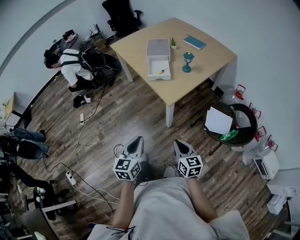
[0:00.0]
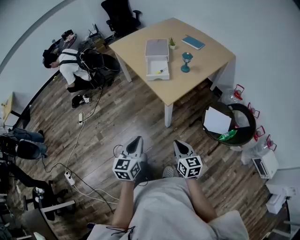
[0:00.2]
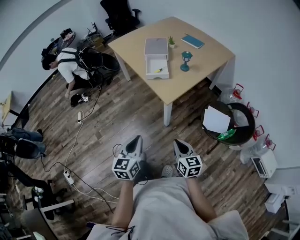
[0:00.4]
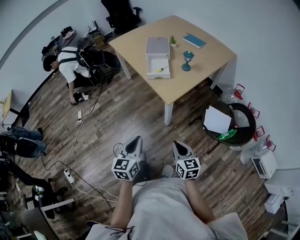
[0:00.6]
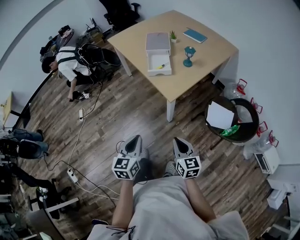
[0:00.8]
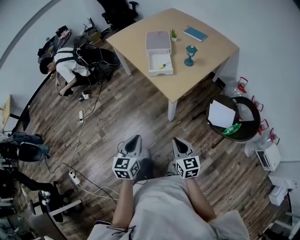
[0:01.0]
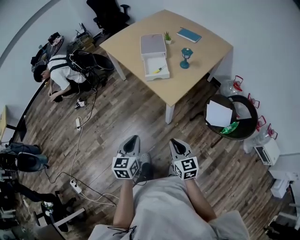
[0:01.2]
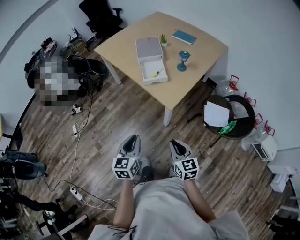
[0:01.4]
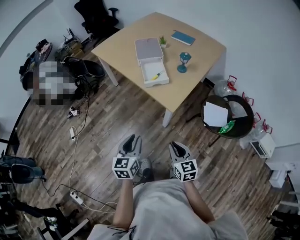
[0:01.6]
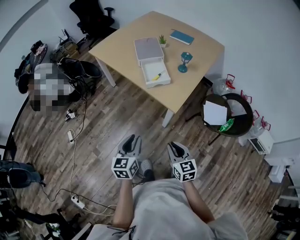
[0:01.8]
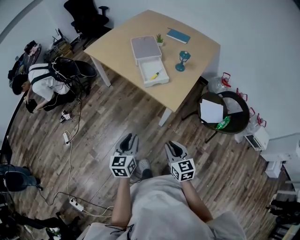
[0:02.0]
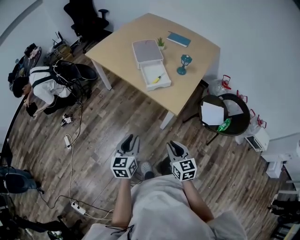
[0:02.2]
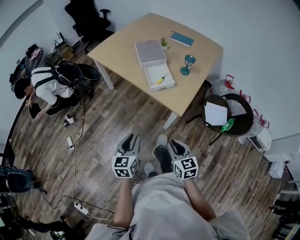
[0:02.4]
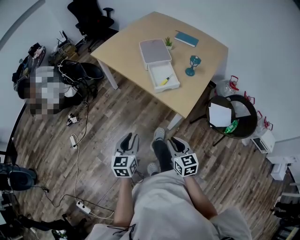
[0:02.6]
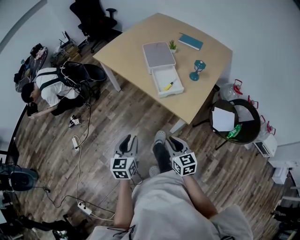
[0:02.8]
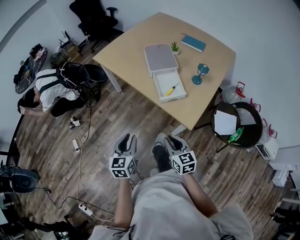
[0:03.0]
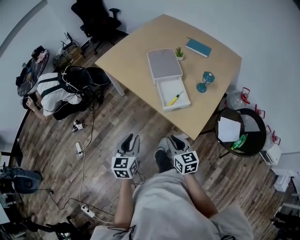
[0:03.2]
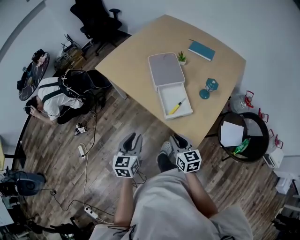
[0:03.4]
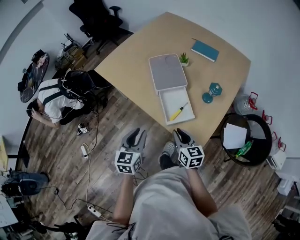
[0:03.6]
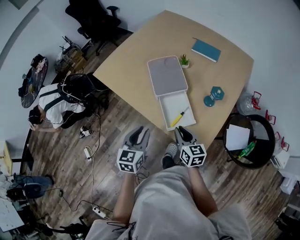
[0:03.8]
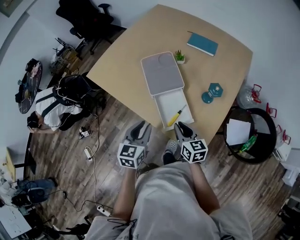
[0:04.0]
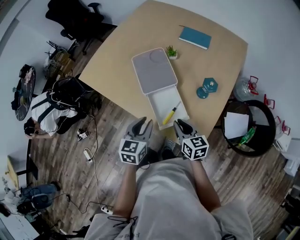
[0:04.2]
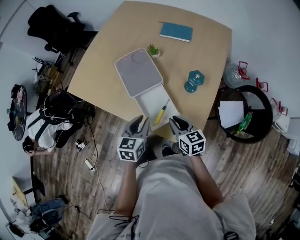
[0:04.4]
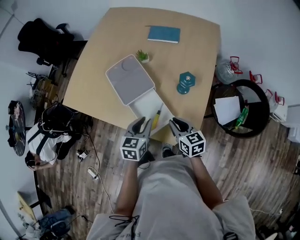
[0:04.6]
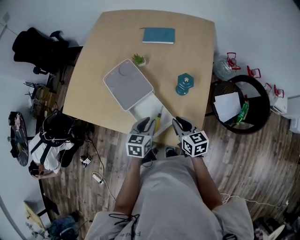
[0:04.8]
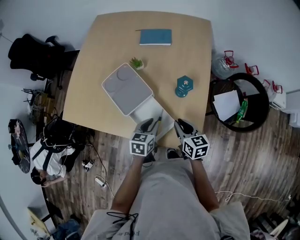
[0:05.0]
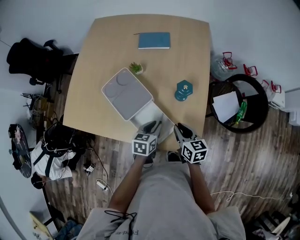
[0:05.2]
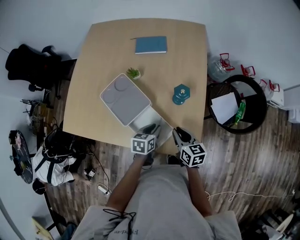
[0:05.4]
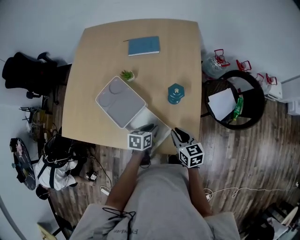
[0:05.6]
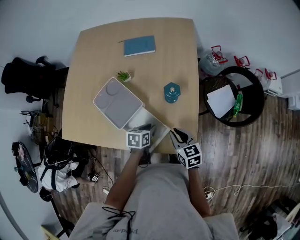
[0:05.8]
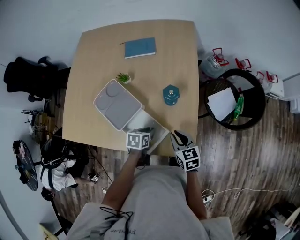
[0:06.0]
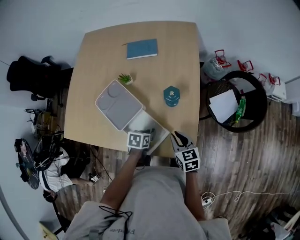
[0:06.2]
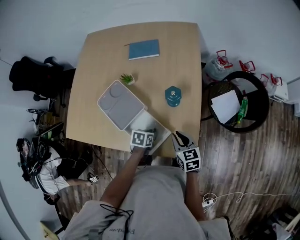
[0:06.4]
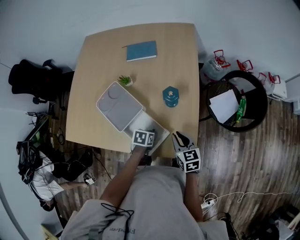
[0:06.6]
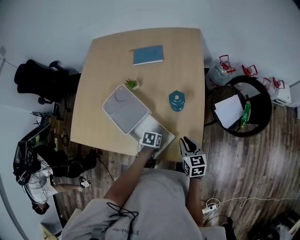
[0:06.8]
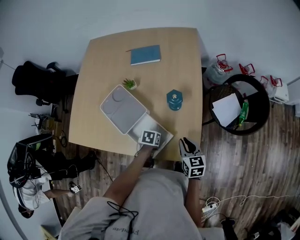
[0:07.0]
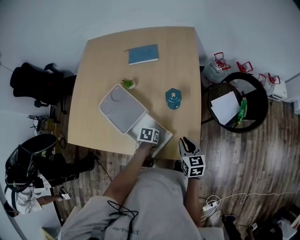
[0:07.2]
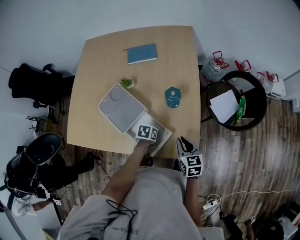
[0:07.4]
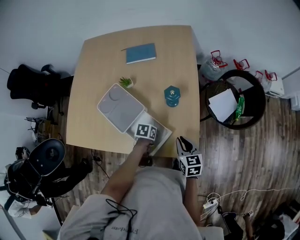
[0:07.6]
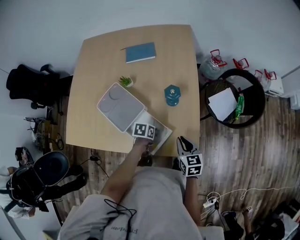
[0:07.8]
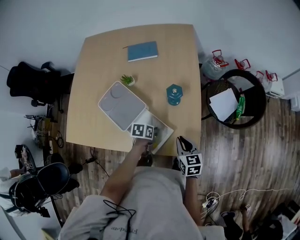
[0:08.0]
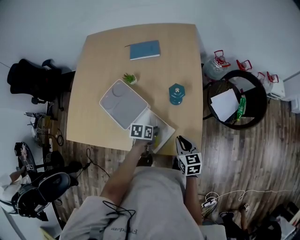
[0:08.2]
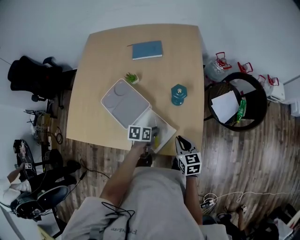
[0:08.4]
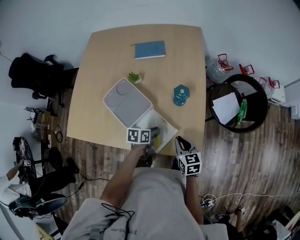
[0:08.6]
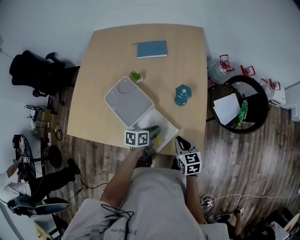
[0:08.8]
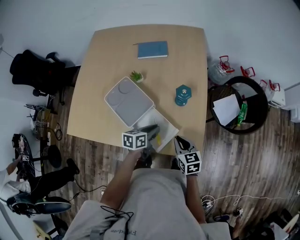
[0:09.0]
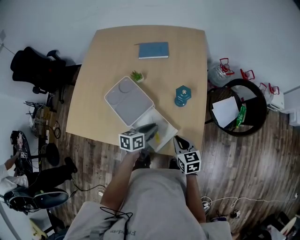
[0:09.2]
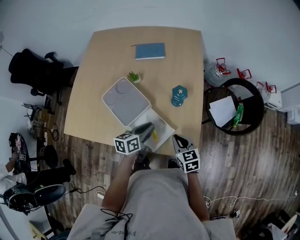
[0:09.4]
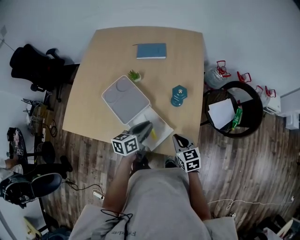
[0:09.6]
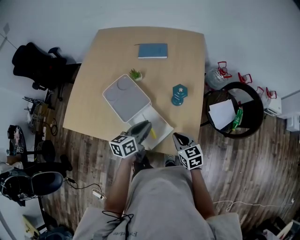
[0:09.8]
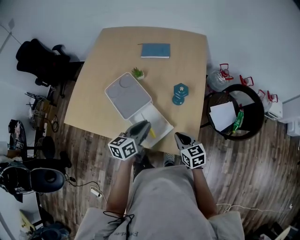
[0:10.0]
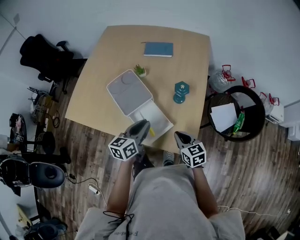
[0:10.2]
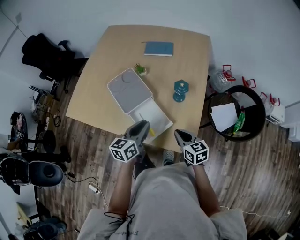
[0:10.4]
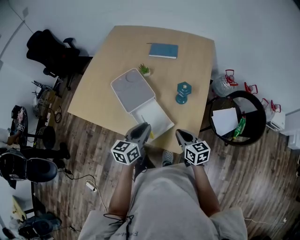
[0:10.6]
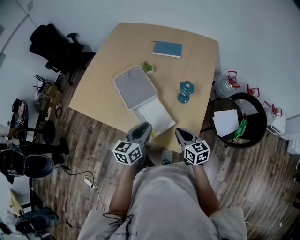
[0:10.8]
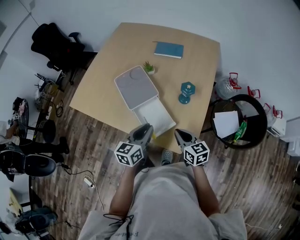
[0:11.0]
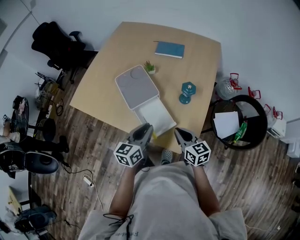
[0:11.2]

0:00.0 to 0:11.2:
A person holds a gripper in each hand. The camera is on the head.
0:00.0 to 0:01.6: The left gripper travels forward and to the left by approximately 15 cm, and opens its fingers, while the right gripper heads to the left and forward, covering some 15 cm.
0:01.6 to 0:03.2: Both grippers move forward and to the left, roughly 25 cm.
0:03.2 to 0:04.8: The right gripper shifts by roughly 30 cm, and rotates approximately 20 degrees. Meanwhile the left gripper ends up about 35 cm from where it was, and rotates about 40 degrees.
0:04.8 to 0:06.4: The left gripper goes some 10 cm downward, and turns by about 30 degrees.
0:06.4 to 0:08.0: The grippers make only small movements.
0:08.0 to 0:09.6: The left gripper moves upward, about 15 cm, and tilts its fingers approximately 30 degrees upward.
0:09.6 to 0:11.2: The right gripper turns by approximately 20 degrees. Meanwhile the left gripper heads backward, covering approximately 10 cm, and changes its angle by some 20 degrees.

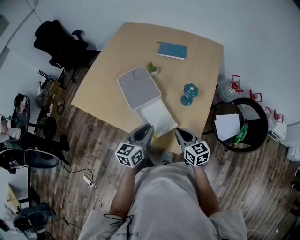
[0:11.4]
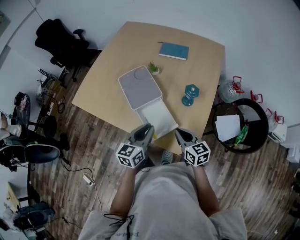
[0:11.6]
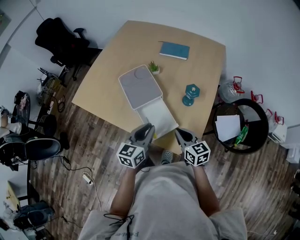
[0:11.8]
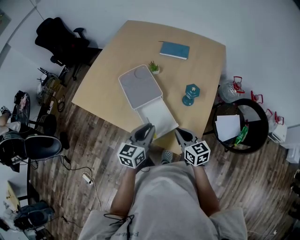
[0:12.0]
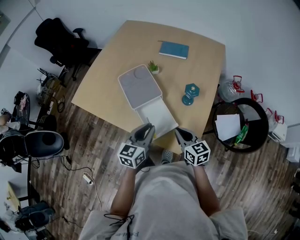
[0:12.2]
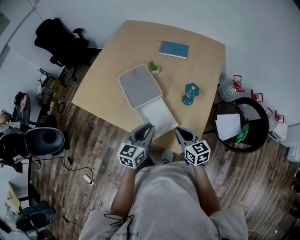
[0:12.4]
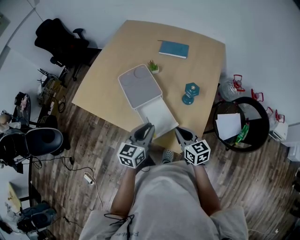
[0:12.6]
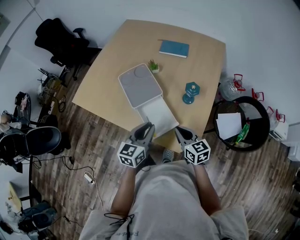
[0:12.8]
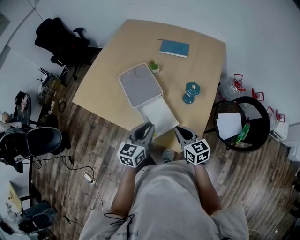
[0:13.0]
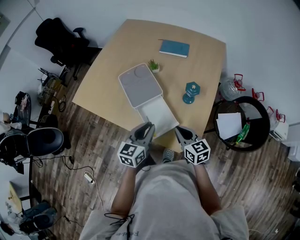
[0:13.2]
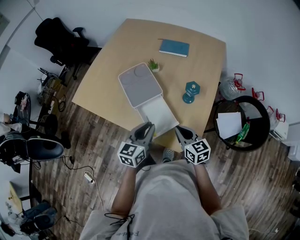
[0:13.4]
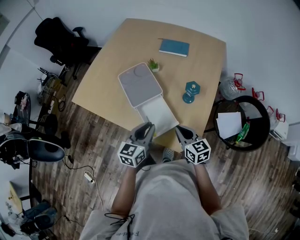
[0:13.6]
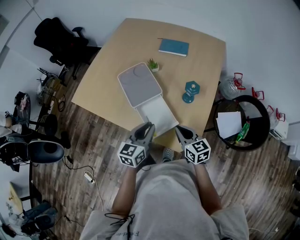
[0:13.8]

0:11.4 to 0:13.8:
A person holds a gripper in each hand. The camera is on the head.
0:11.4 to 0:12.6: The grippers stay close to where they were, moving slightly.
0:12.6 to 0:13.8: Neither gripper changes place.

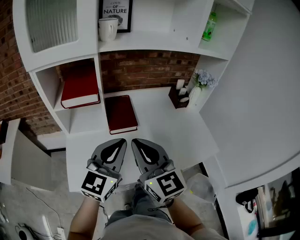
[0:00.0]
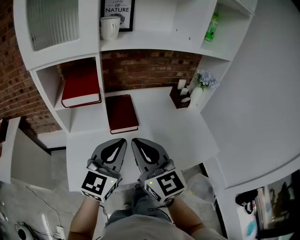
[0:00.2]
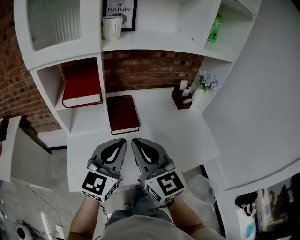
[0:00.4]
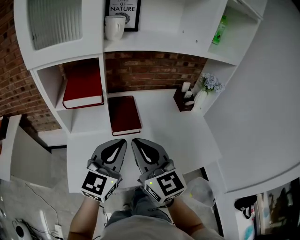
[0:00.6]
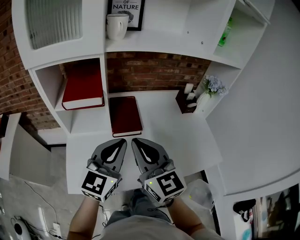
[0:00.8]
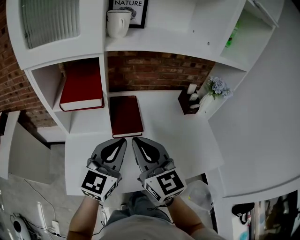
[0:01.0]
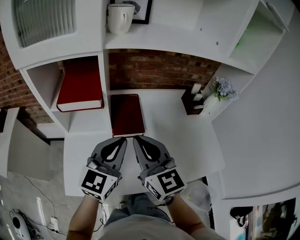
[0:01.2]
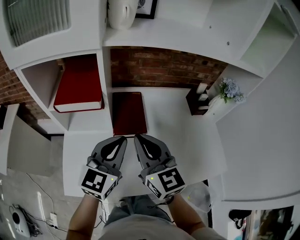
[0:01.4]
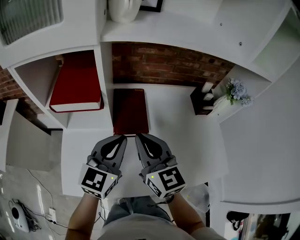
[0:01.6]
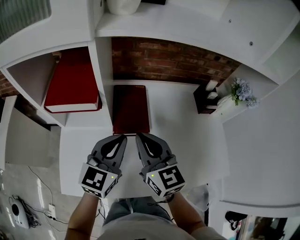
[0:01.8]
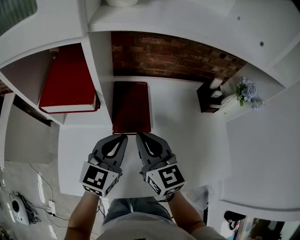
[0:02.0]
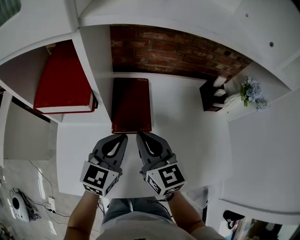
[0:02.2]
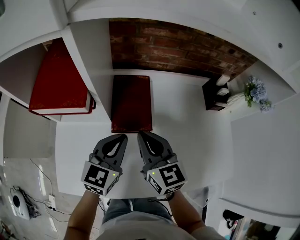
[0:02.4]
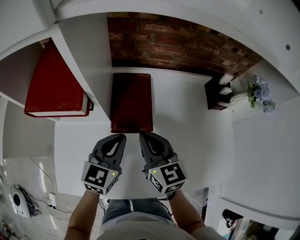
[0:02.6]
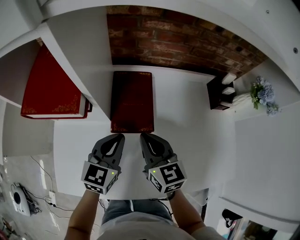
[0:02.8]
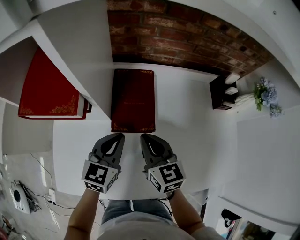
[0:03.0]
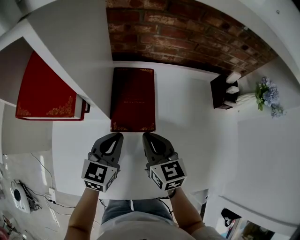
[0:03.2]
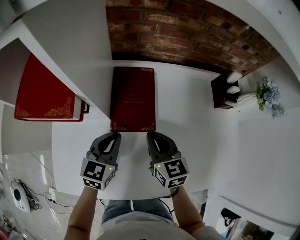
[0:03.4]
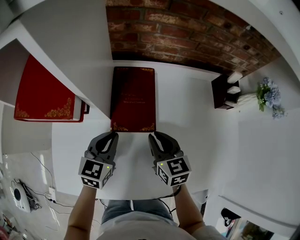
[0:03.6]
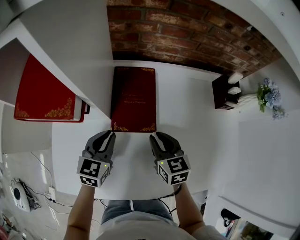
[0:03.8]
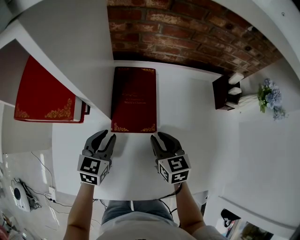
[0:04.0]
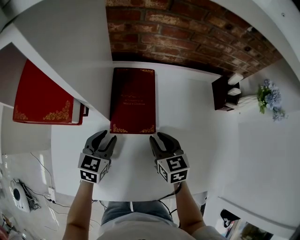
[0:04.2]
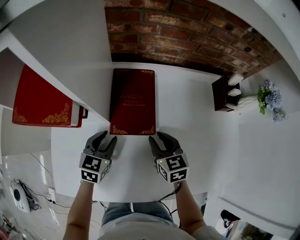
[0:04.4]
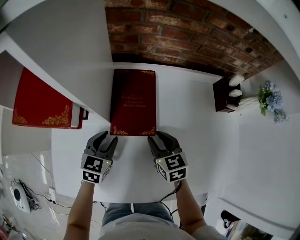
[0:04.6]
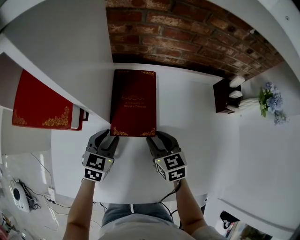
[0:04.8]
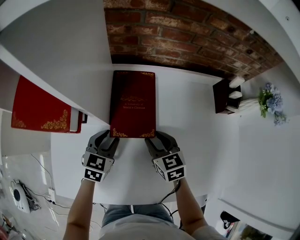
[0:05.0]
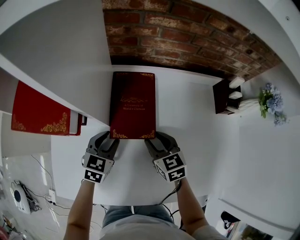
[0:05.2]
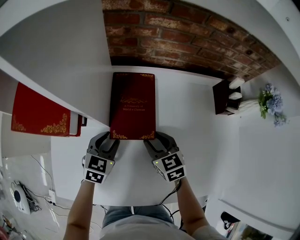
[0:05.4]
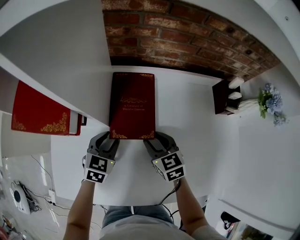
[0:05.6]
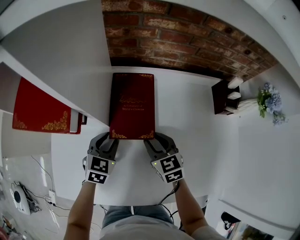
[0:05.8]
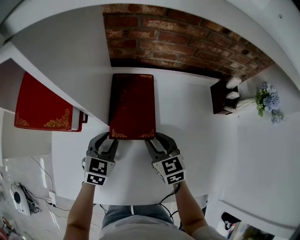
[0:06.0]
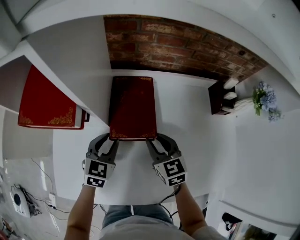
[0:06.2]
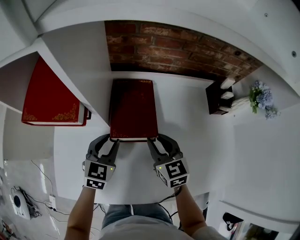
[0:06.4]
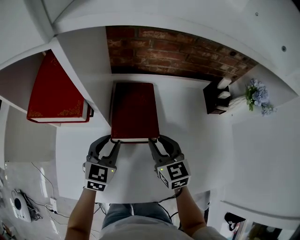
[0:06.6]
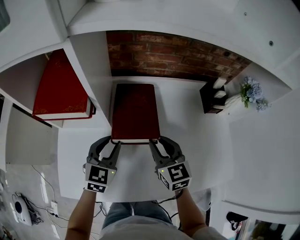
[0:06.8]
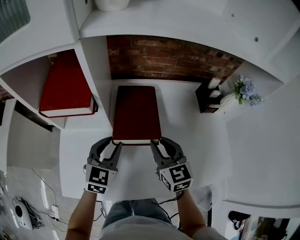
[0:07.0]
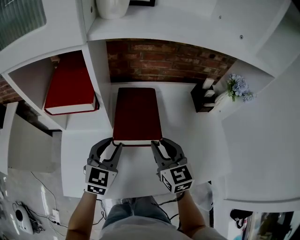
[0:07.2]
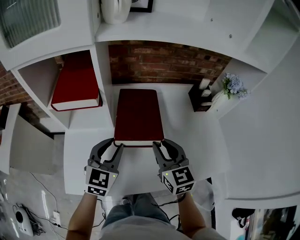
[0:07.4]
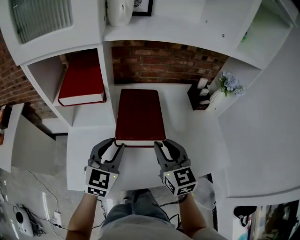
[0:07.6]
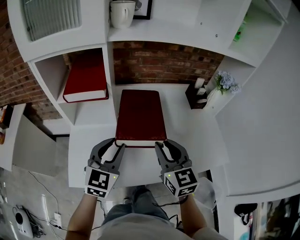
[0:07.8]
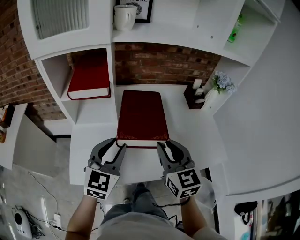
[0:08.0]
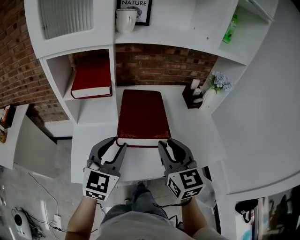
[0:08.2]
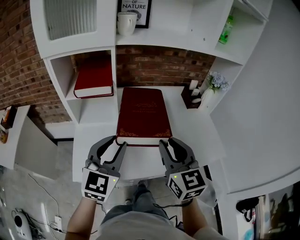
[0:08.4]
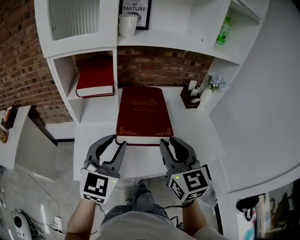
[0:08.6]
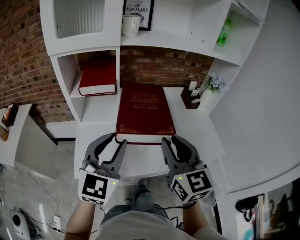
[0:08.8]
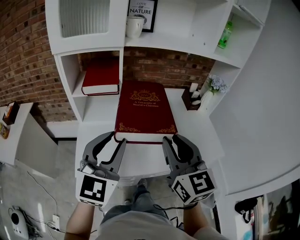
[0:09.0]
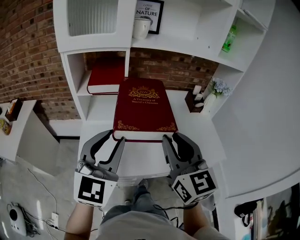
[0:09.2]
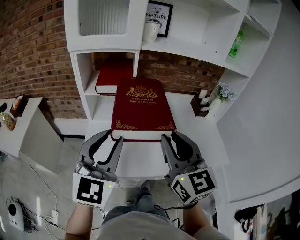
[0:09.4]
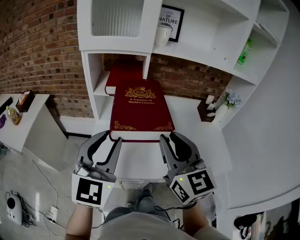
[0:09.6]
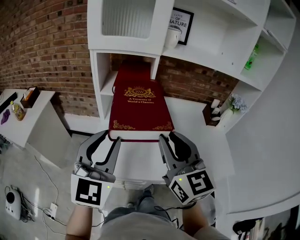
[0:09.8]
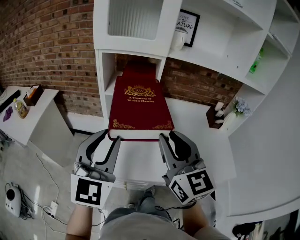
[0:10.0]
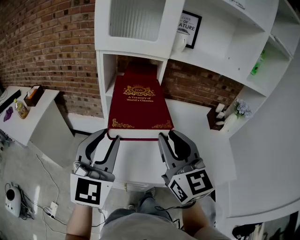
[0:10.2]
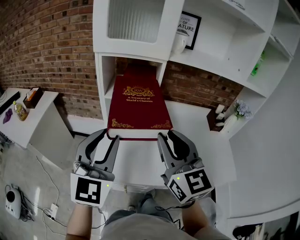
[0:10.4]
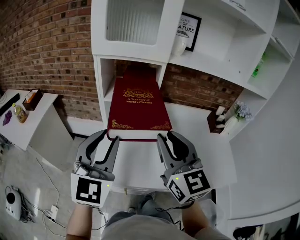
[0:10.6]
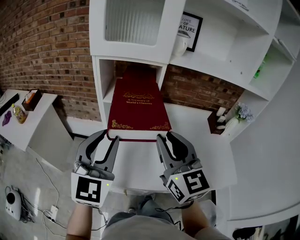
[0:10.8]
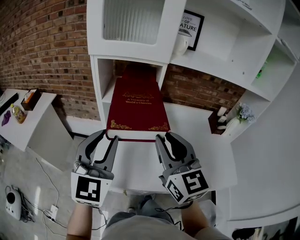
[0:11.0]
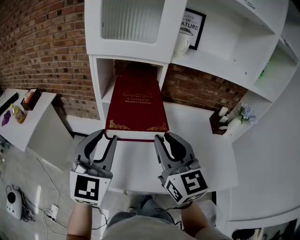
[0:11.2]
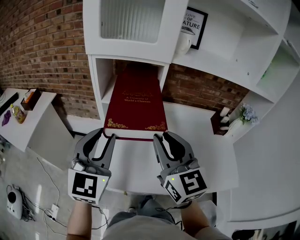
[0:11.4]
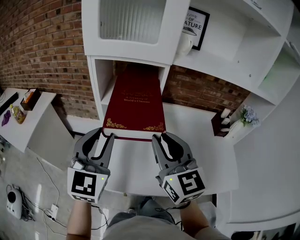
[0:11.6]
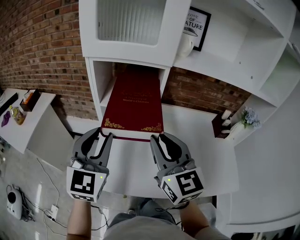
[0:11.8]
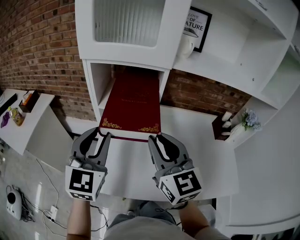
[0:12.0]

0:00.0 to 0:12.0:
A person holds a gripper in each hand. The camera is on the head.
0:00.0 to 0:01.6: Both grippers move forward and downward, roughly 15 cm.
0:01.6 to 0:03.0: The right gripper shifts about 15 cm downward, while the left gripper travels downward and forward by approximately 15 cm.
0:03.0 to 0:04.4: The left gripper shifts approximately 10 cm downward, and opens up, while the right gripper moves downward and to the right, roughly 10 cm, and opens up.
0:04.4 to 0:06.0: There are only small adjustments of the grippers.
0:06.0 to 0:07.6: The grippers both shift upward and backward by approximately 20 cm. The left gripper rotates roughly 20 degrees; the right gripper rotates approximately 20 degrees.
0:07.6 to 0:09.0: Both grippers move backward and upward, about 20 cm.
0:09.0 to 0:10.4: Both grippers travel together to the left, some 10 cm.
0:10.4 to 0:12.0: Both grippers travel together forward, approximately 10 cm.
